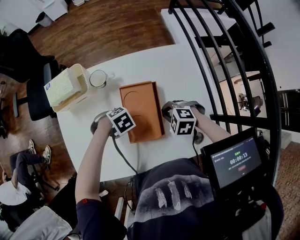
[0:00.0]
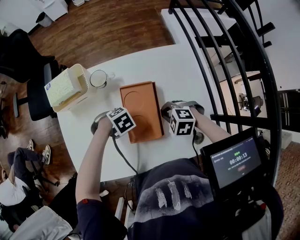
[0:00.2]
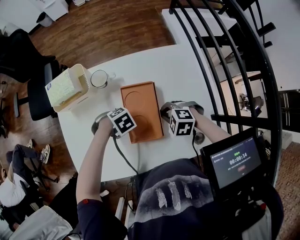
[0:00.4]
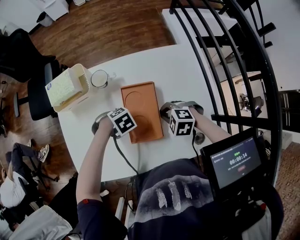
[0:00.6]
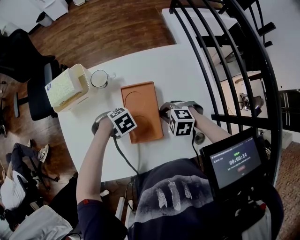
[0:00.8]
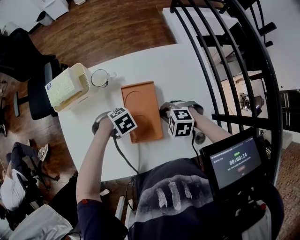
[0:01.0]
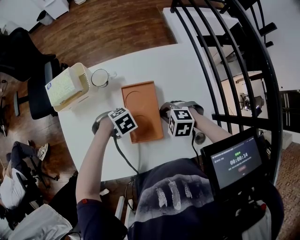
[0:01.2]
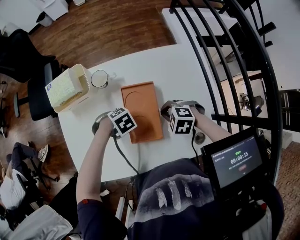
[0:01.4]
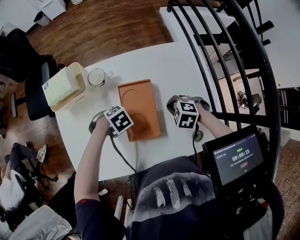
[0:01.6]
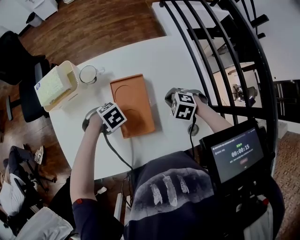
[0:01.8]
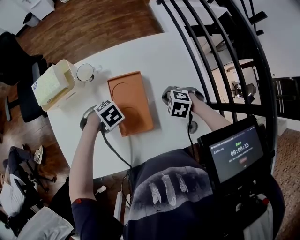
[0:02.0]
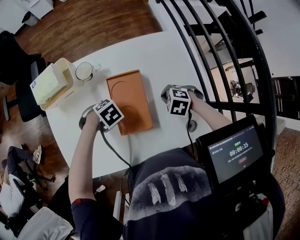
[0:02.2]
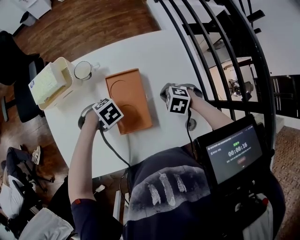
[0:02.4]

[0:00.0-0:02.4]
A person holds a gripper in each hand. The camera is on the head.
0:01.2 to 0:02.4: The right gripper changes place by roughly 10 cm.

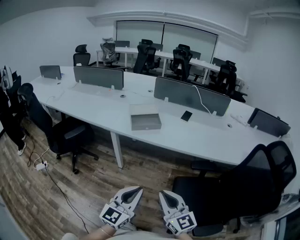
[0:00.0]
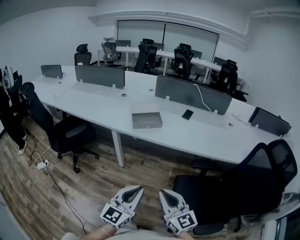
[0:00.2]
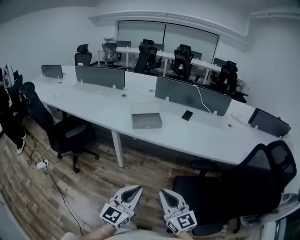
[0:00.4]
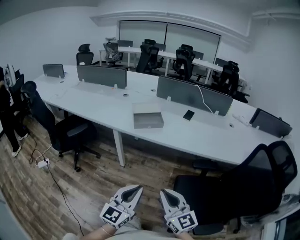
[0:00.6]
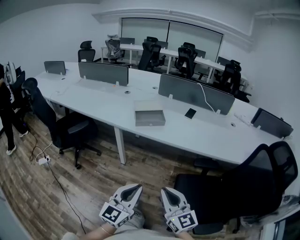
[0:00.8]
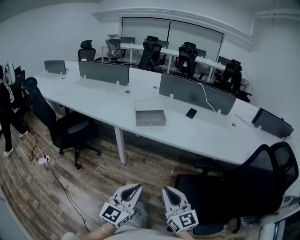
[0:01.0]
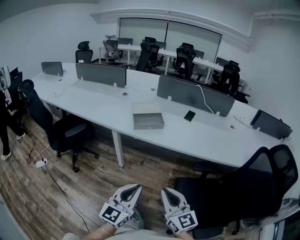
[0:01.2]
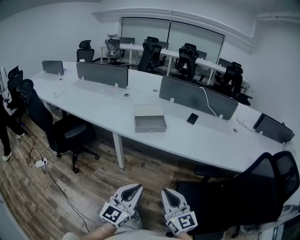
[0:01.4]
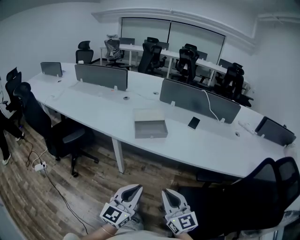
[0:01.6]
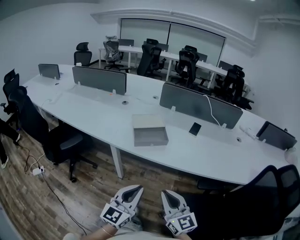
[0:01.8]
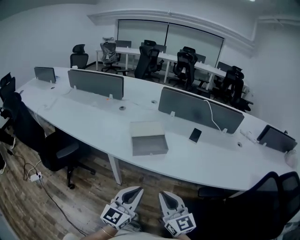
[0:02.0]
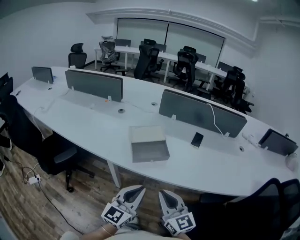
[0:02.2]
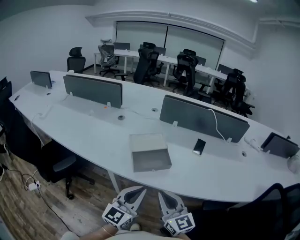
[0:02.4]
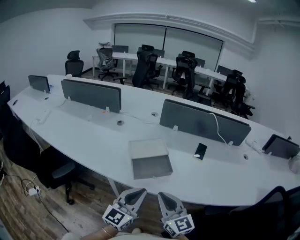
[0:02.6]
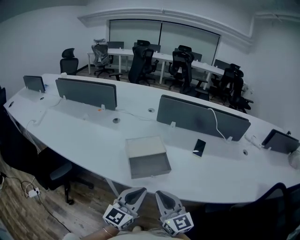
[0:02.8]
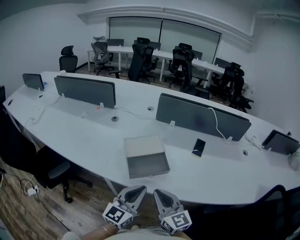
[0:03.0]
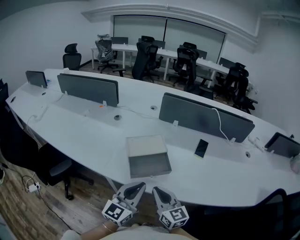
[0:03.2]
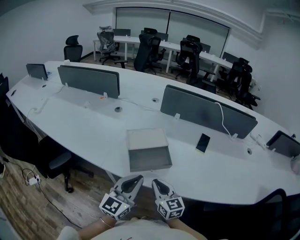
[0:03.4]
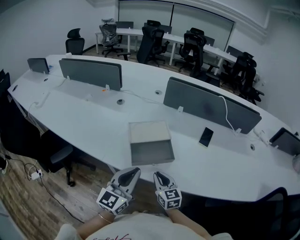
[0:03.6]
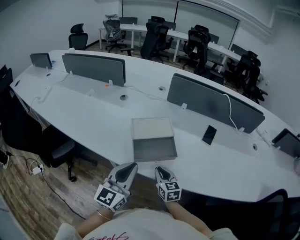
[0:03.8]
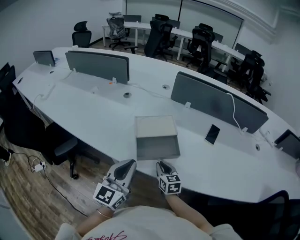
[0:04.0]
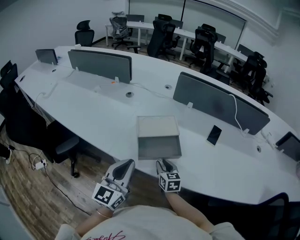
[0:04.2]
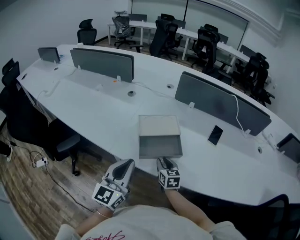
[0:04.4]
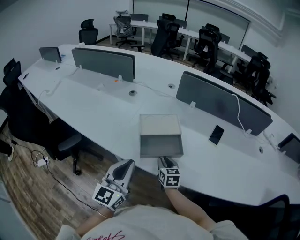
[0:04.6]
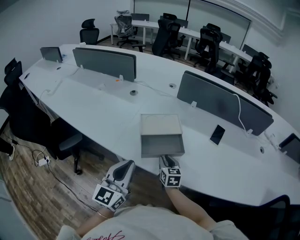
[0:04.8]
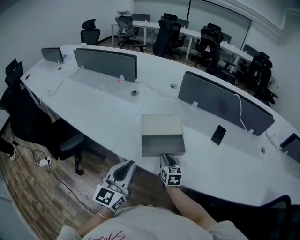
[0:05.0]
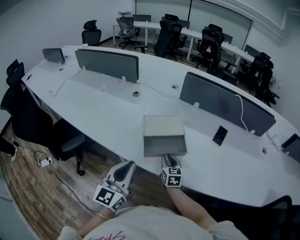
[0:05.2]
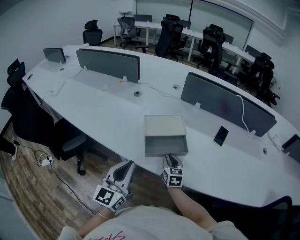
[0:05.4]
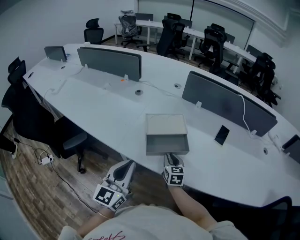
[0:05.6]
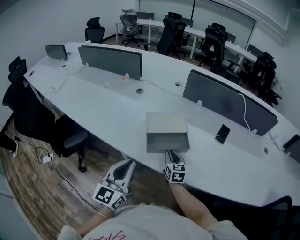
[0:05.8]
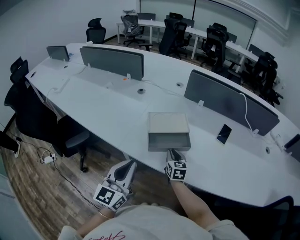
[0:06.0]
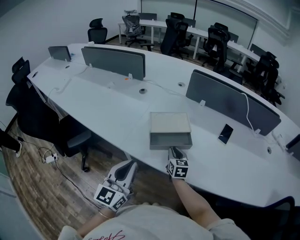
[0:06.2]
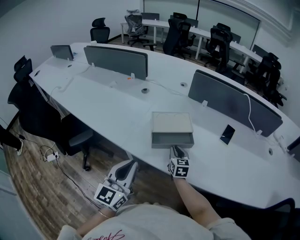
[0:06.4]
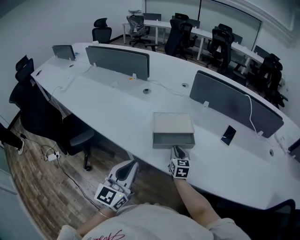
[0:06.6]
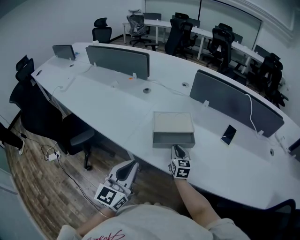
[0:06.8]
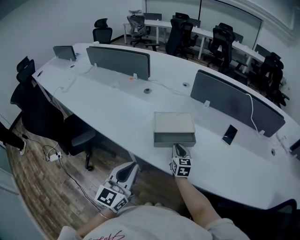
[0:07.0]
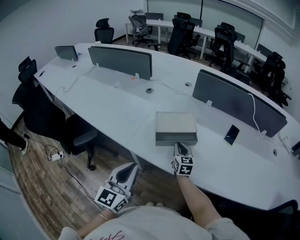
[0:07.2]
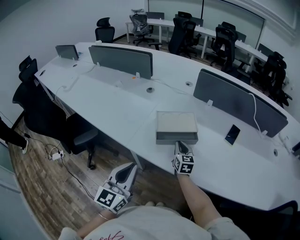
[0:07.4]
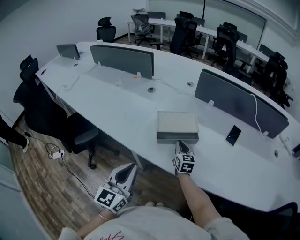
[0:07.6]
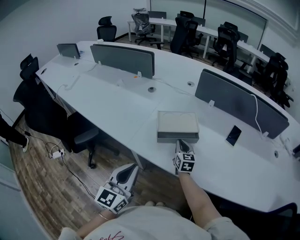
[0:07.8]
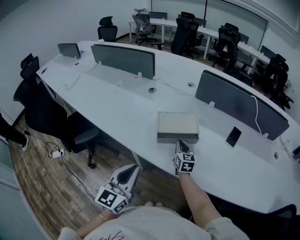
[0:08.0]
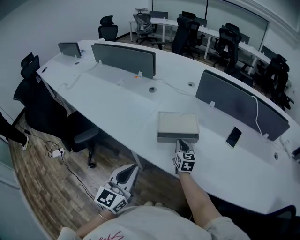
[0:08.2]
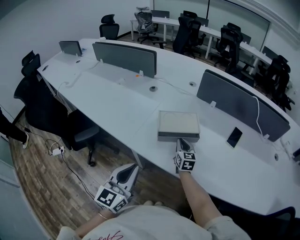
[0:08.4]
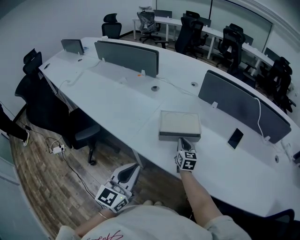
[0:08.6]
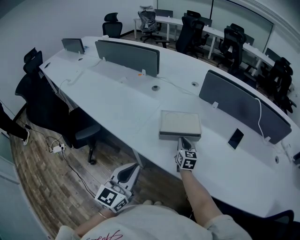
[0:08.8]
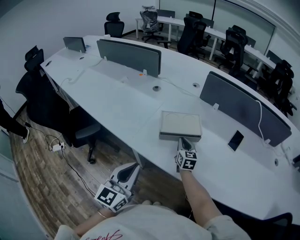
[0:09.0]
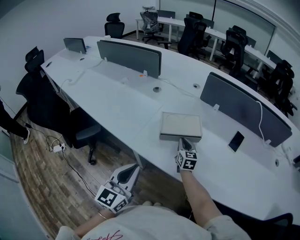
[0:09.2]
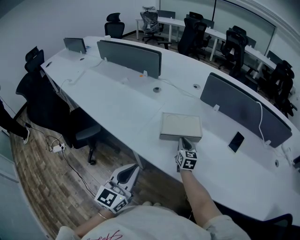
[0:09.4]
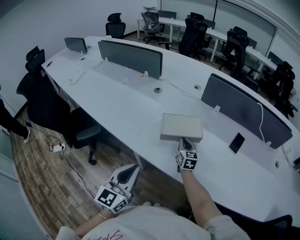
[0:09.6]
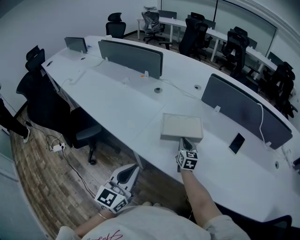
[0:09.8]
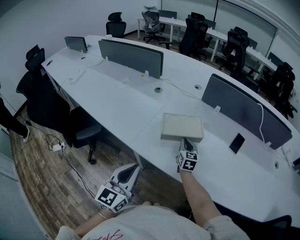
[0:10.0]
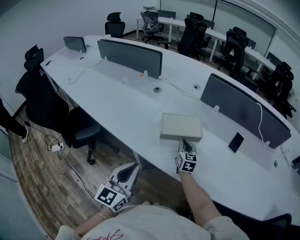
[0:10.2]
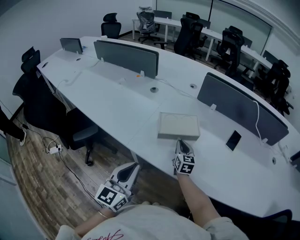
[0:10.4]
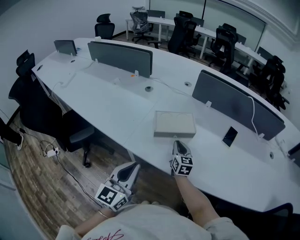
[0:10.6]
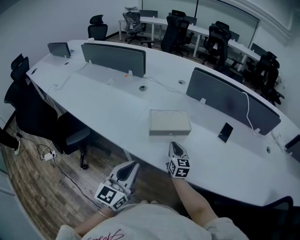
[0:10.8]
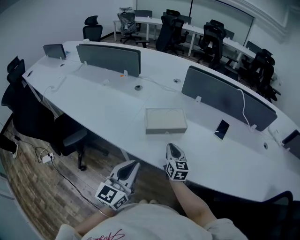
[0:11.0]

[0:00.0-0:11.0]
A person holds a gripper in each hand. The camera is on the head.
0:00.0 to 0:01.6: The two grippers go roughly 10 cm forward.
0:01.6 to 0:03.2: Both grippers travel together forward, some 30 cm.
0:03.2 to 0:04.8: The left gripper heads to the left, covering approximately 10 cm; the right gripper heads downward and forward, covering roughly 20 cm, swivels approximately 20 degrees, and opens.
0:04.8 to 0:06.2: There are only small adjustments of the grippers.
0:06.2 to 0:07.8: The grippers move only a little.
0:07.8 to 0:09.4: The grippers stay close to where they were, moving slightly.
0:09.4 to 0:11.0: The right gripper is displaced backward by about 10 cm.

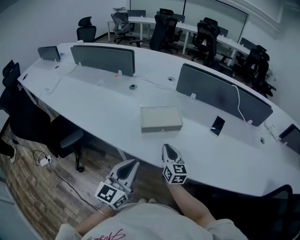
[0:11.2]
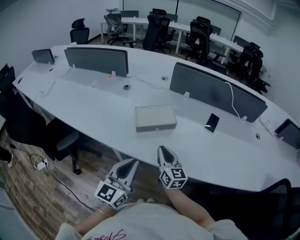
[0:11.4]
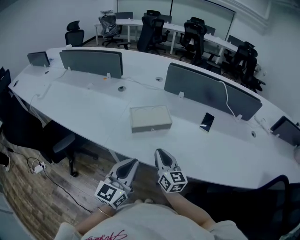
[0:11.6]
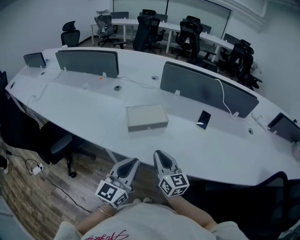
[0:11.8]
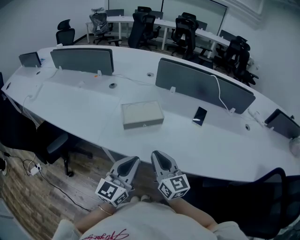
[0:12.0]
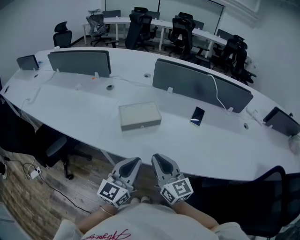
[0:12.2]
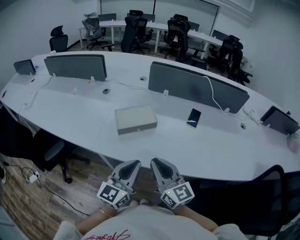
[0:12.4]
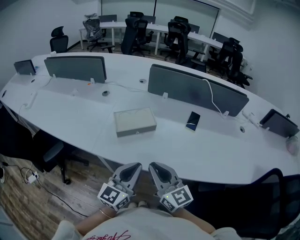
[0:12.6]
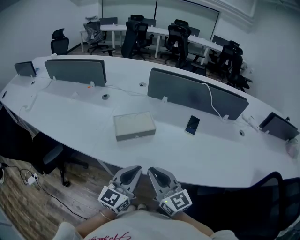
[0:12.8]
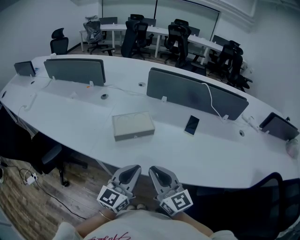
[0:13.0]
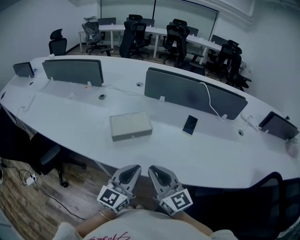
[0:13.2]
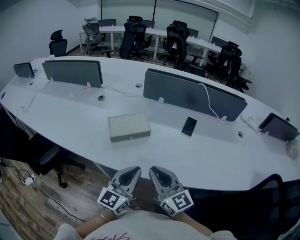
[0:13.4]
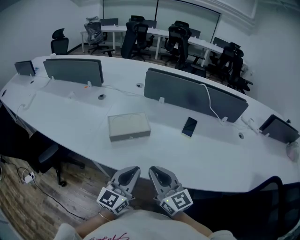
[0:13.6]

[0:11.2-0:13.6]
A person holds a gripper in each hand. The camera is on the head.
0:11.2 to 0:12.4: The right gripper is displaced backward and upward by about 20 cm. Meanwhile the left gripper heads to the right, covering roughly 10 cm.
0:12.4 to 0:13.6: The grippers stay close to where they were, moving slightly.

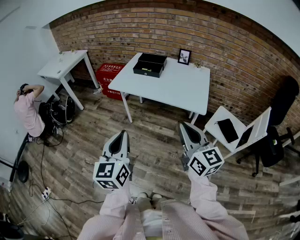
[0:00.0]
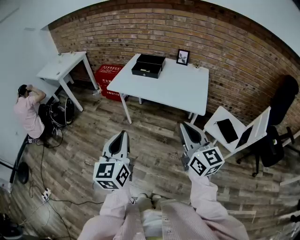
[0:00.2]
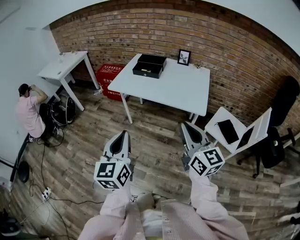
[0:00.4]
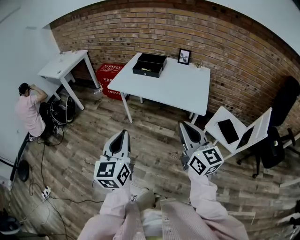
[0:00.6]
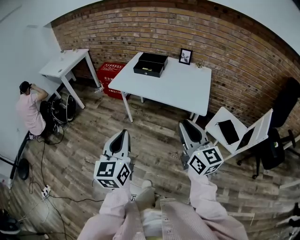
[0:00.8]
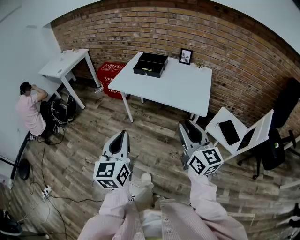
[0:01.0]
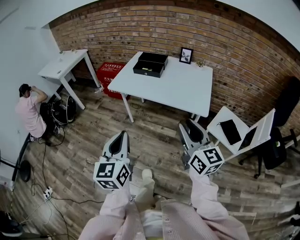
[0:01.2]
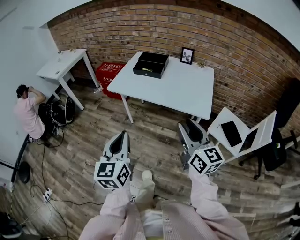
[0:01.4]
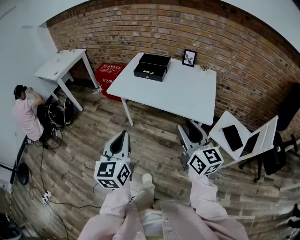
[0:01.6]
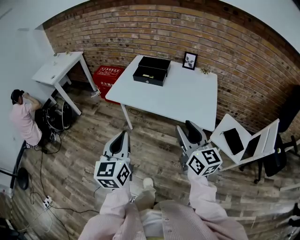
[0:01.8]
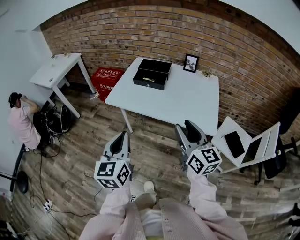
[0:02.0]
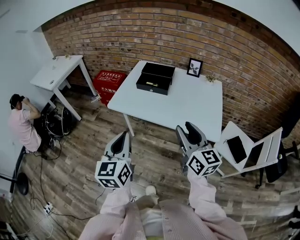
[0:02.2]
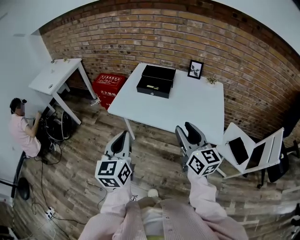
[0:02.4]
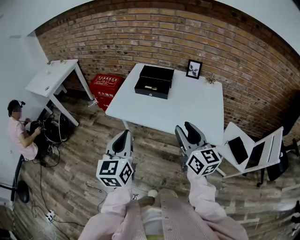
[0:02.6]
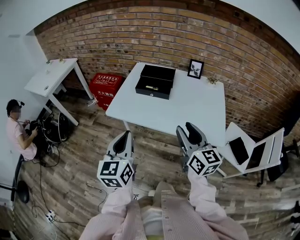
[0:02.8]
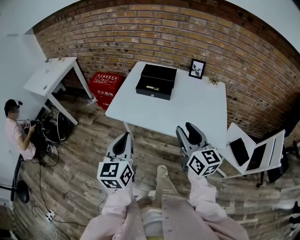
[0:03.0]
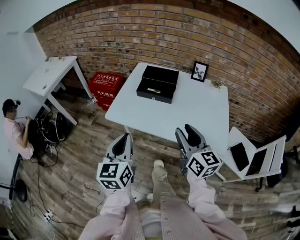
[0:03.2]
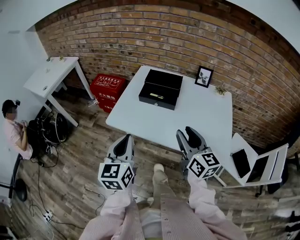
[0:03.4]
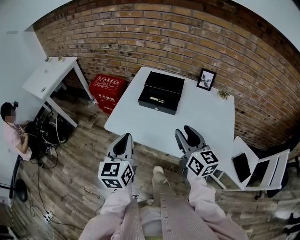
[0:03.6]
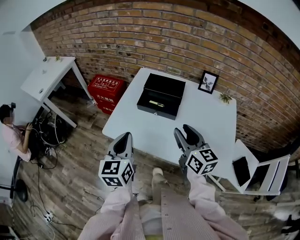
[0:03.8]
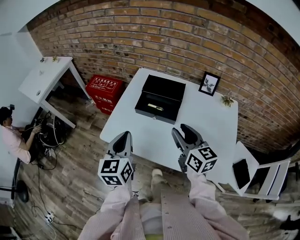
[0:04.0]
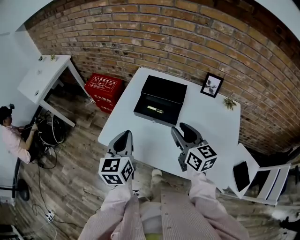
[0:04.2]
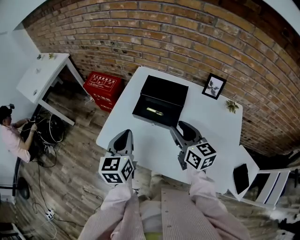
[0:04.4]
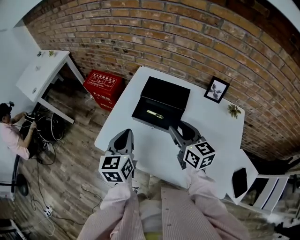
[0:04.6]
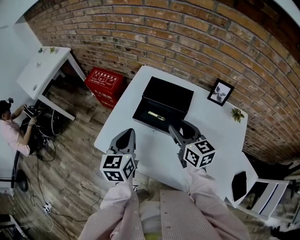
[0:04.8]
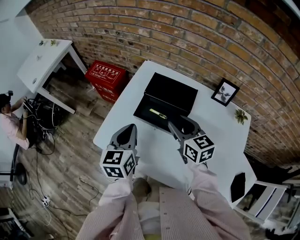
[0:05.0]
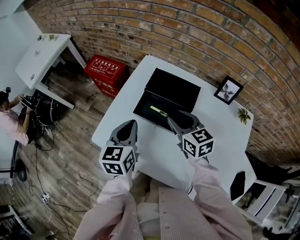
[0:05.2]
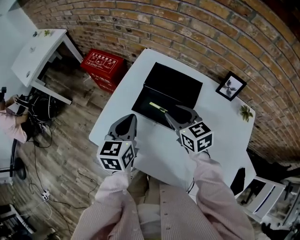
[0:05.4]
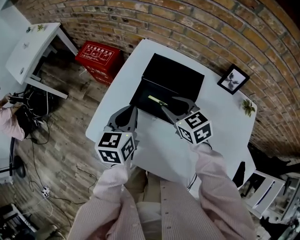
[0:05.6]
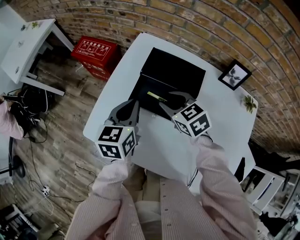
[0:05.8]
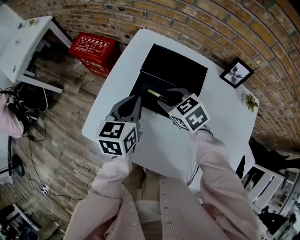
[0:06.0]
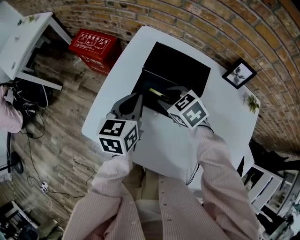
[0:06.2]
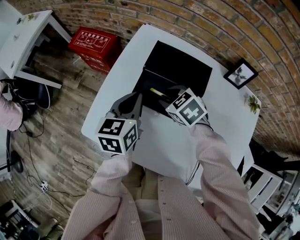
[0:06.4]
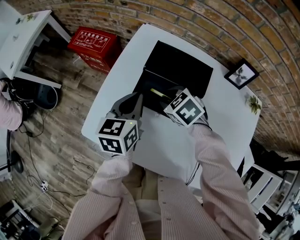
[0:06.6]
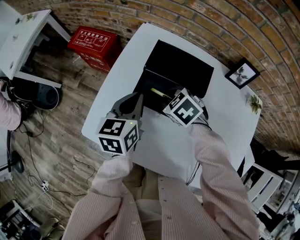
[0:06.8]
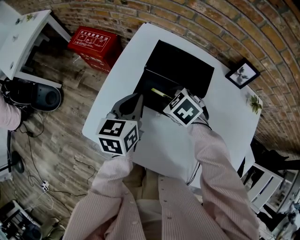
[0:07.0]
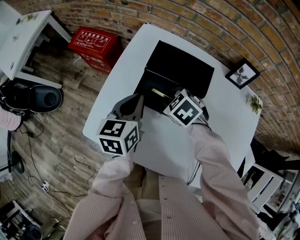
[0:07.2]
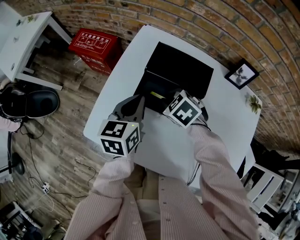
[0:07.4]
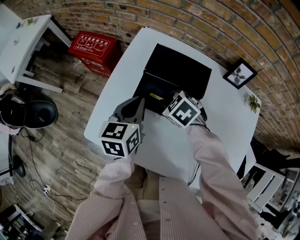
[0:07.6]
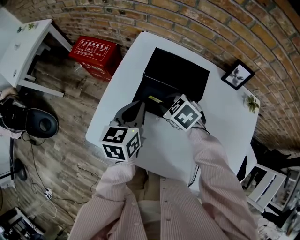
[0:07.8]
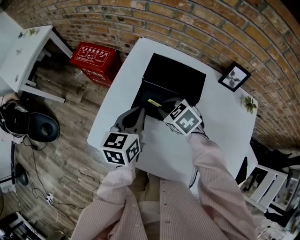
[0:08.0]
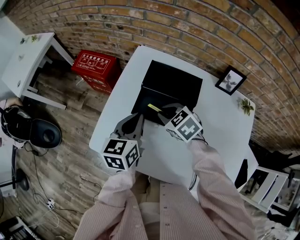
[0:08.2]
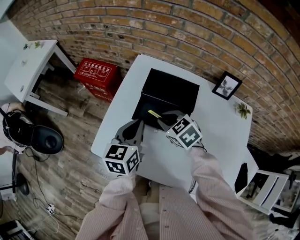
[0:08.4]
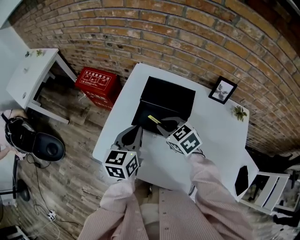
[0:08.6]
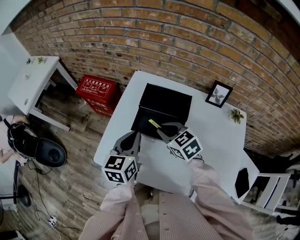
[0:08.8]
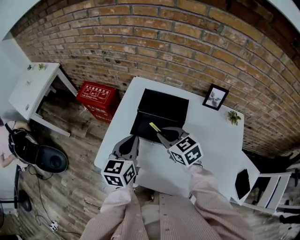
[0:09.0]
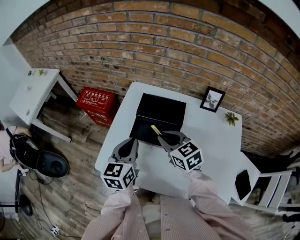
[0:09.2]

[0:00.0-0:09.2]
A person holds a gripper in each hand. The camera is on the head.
0:00.0 to 0:01.6: The two grippers go approximately 10 cm forward. The right gripper opens up.
0:01.6 to 0:03.0: The two grippers go approximately 20 cm forward.
0:03.0 to 0:04.6: The two grippers go approximately 30 cm forward.
0:04.6 to 0:06.2: The left gripper goes some 15 cm forward and downward. Meanwhile the right gripper is displaced downward, forward and to the left by some 20 cm, and points its fingers some 40 degrees further downward.
0:06.2 to 0:07.6: The right gripper closes its fingers.
0:07.6 to 0:09.2: The left gripper goes roughly 10 cm upward and backward; the right gripper is displaced upward by about 15 cm, and tilts its fingers approximately 40 degrees upward.
